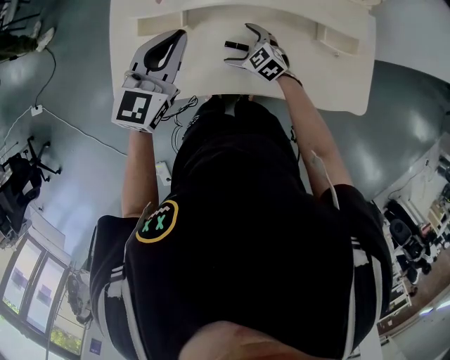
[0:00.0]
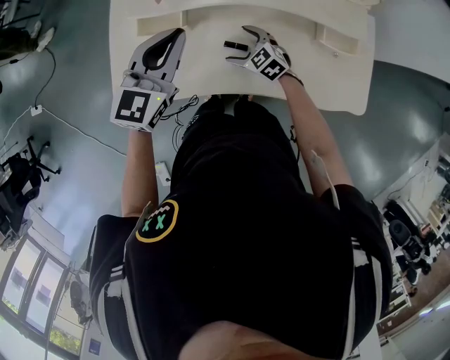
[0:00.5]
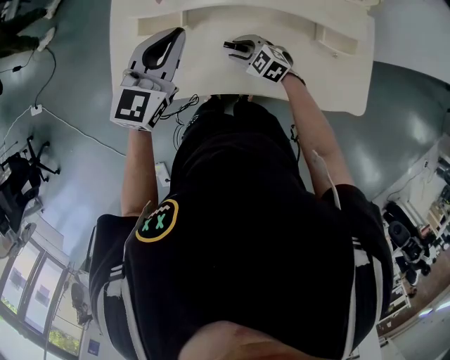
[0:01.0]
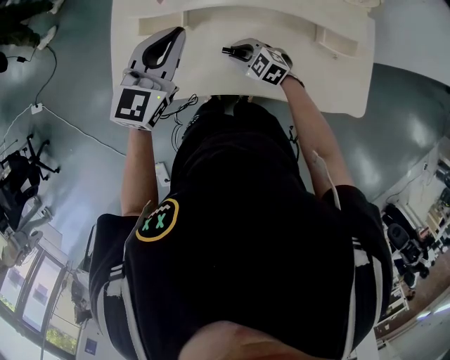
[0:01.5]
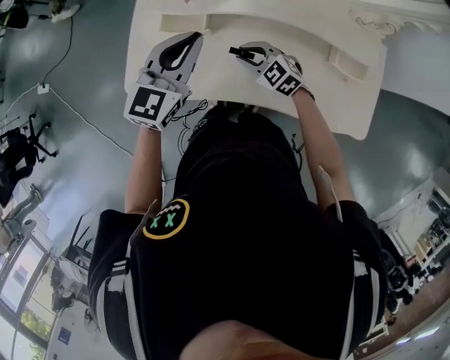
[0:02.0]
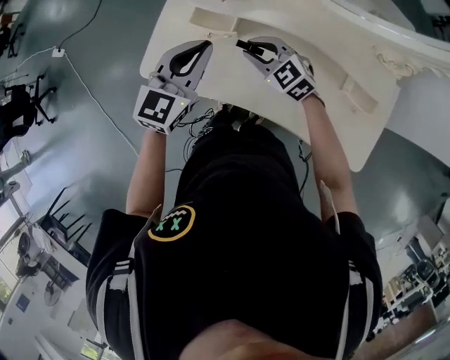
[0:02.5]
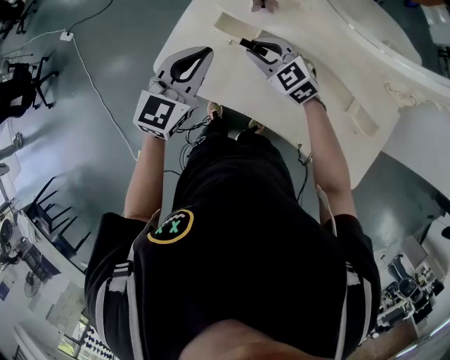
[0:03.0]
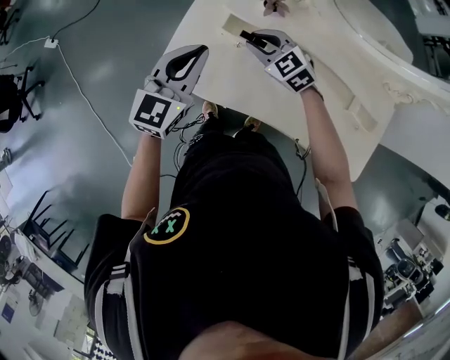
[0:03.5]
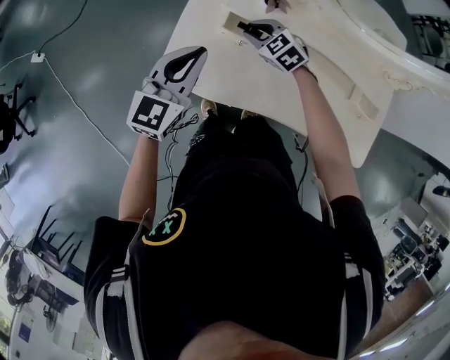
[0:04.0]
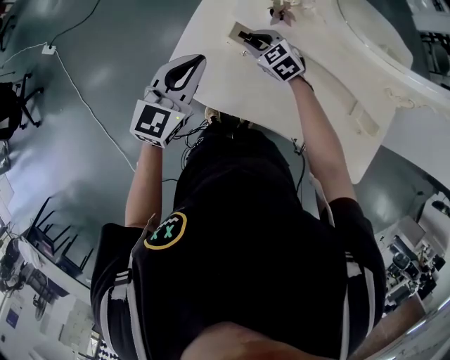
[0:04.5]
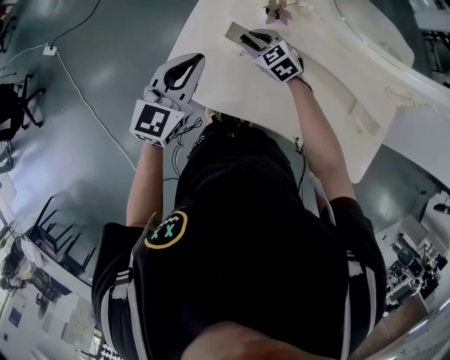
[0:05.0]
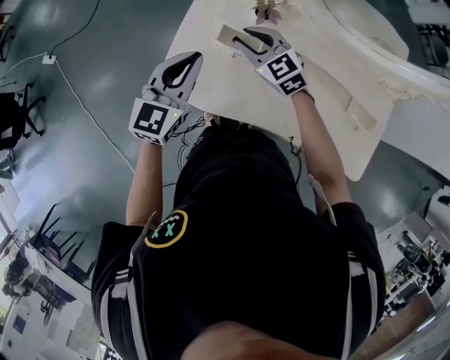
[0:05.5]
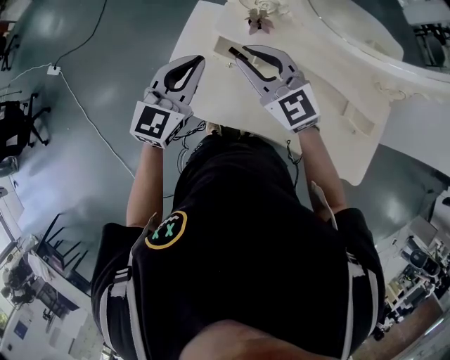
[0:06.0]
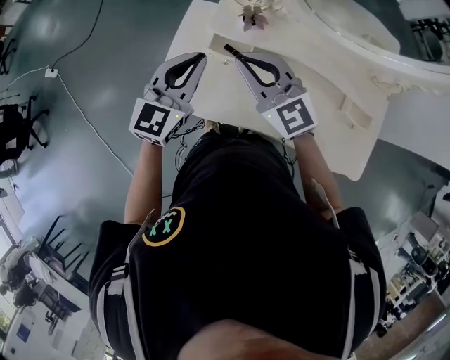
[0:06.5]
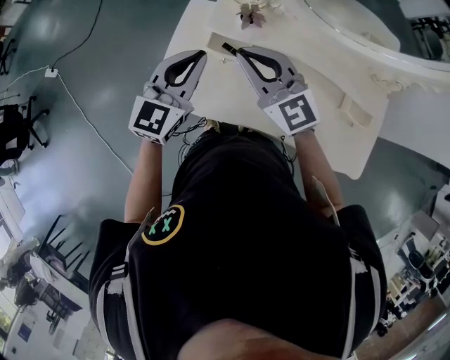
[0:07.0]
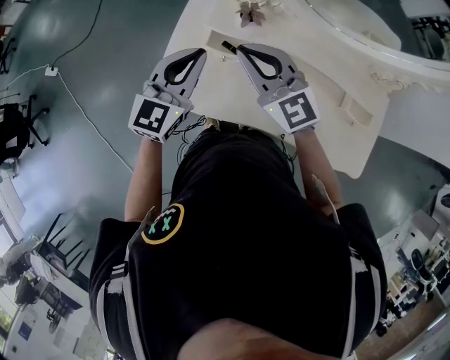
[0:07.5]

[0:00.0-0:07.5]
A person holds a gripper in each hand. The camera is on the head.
0:00.0 to 0:02.0: The right gripper travels upward by approximately 5 cm, and closes its fingers.
0:02.0 to 0:04.0: The right gripper is displaced forward and to the left by approximately 20 cm, while the left gripper travels to the left by roughly 20 cm.
0:04.0 to 0:05.5: The right gripper travels upward by about 10 cm.
0:05.5 to 0:07.5: The right gripper heads upward and backward, covering roughly 15 cm, and rotates roughly 30 degrees. The left gripper ends up roughly 5 cm from where it was.

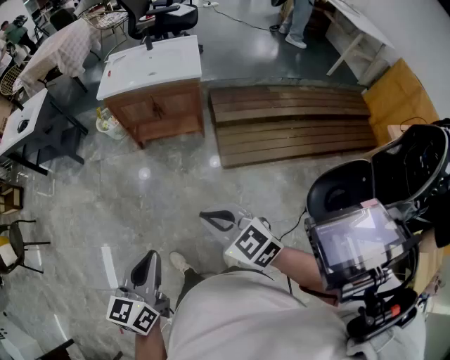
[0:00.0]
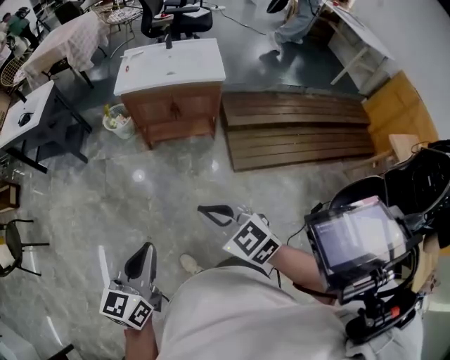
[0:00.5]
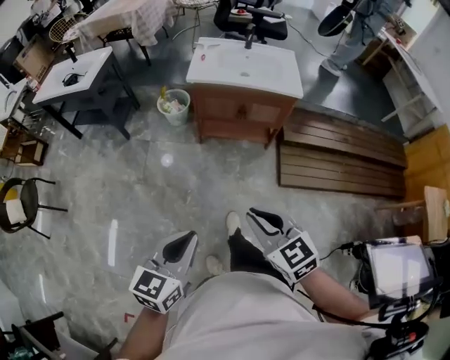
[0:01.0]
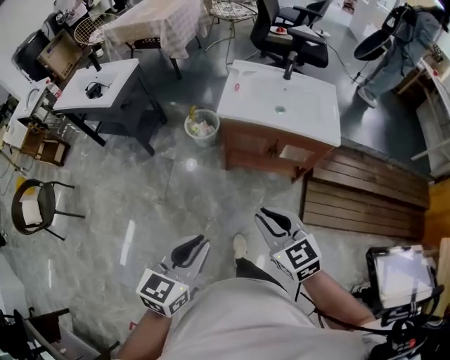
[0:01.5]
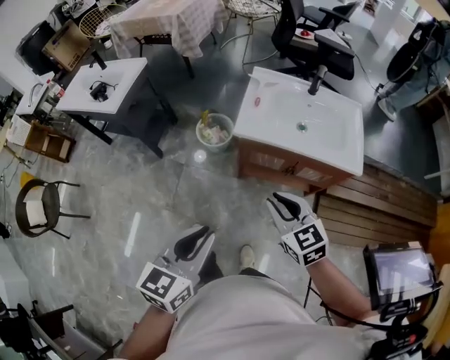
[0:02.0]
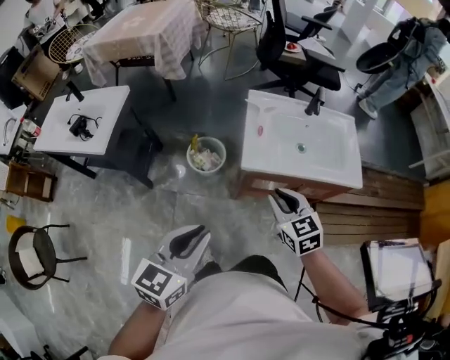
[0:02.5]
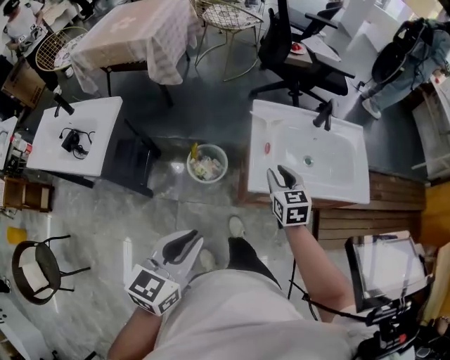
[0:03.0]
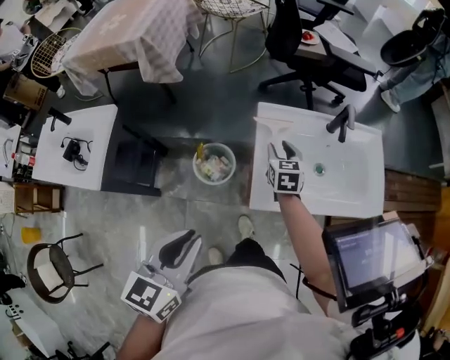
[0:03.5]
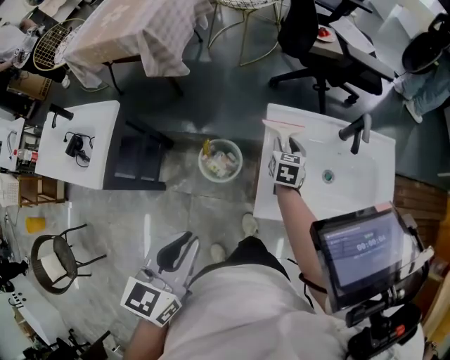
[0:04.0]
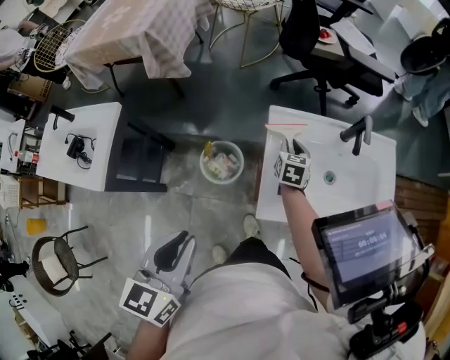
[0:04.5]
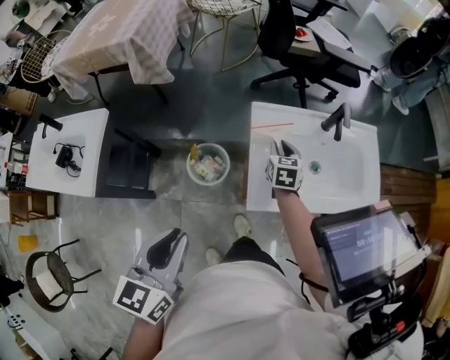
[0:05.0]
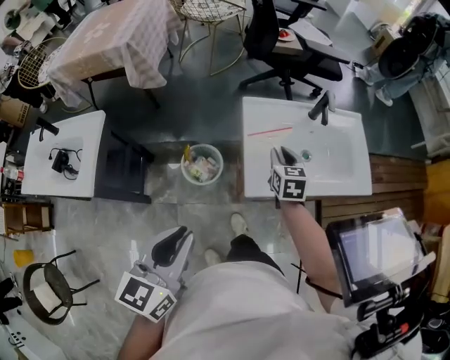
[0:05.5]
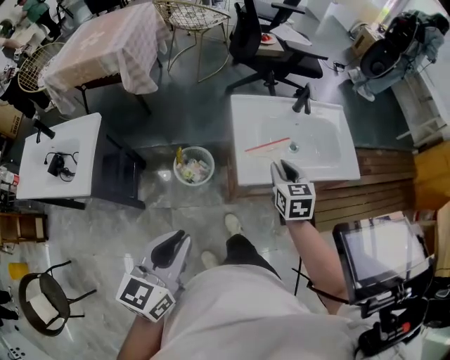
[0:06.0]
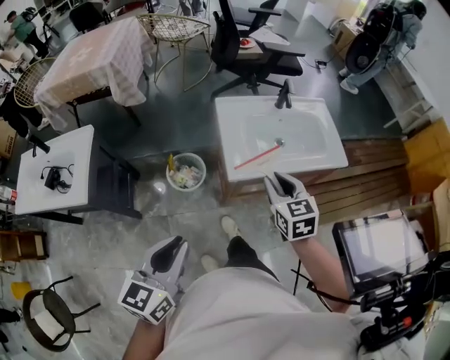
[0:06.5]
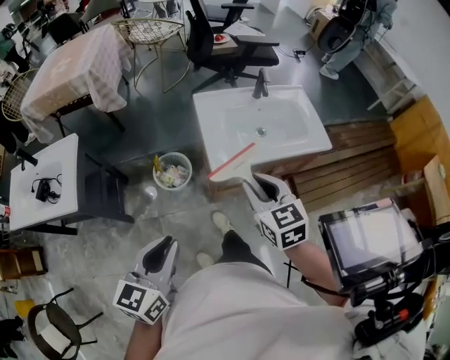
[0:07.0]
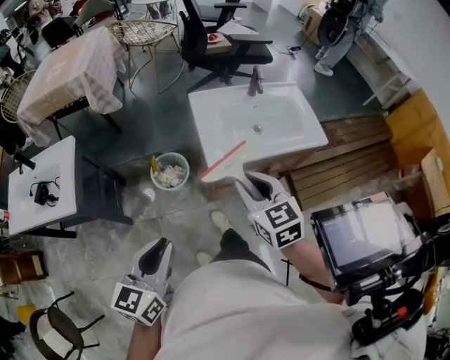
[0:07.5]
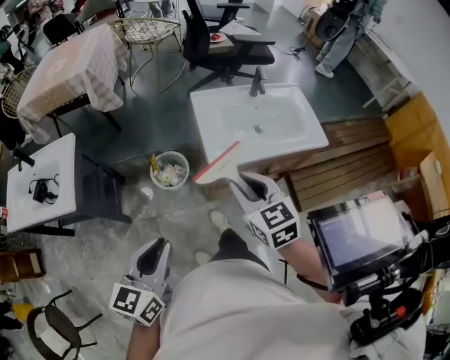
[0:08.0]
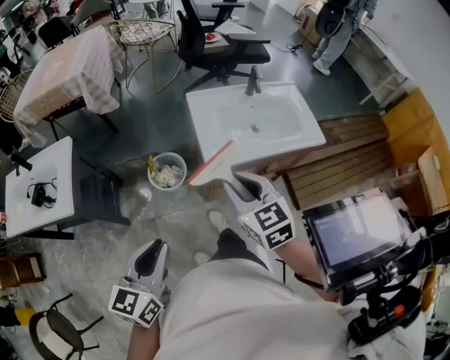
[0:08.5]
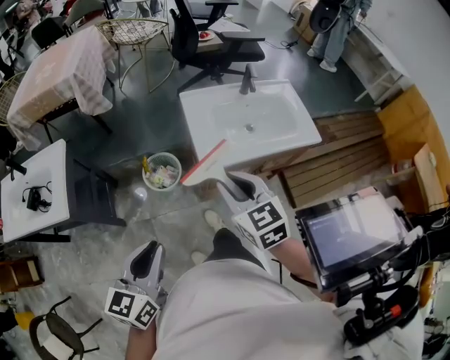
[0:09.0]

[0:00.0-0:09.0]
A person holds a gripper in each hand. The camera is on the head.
0:00.0 to 0:02.0: The pair of grippers is taken forward and to the left, approximately 60 cm.
0:02.0 to 0:04.5: The two grippers travel together, forward, some 50 cm. The right gripper swivels some 50 degrees.
0:04.5 to 0:07.0: The left gripper shifts about 20 cm backward, and rotates roughly 20 degrees; the right gripper goes some 50 cm backward and upward.
0:07.0 to 0:09.0: The grippers move only a little.

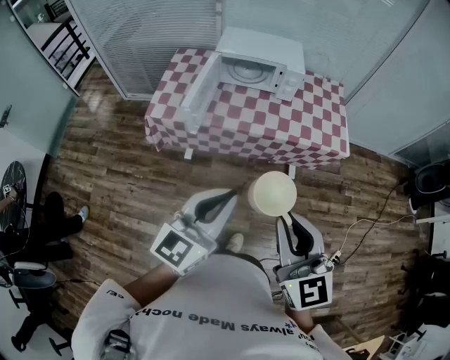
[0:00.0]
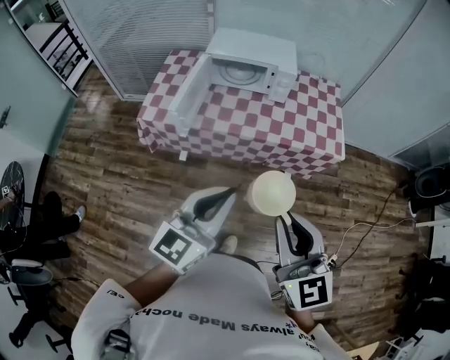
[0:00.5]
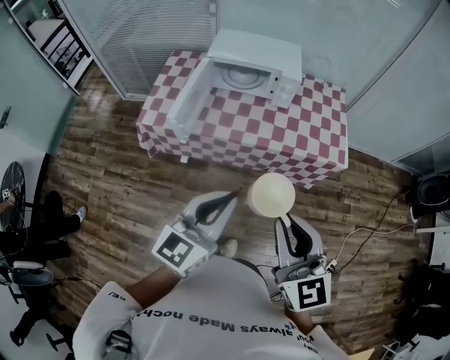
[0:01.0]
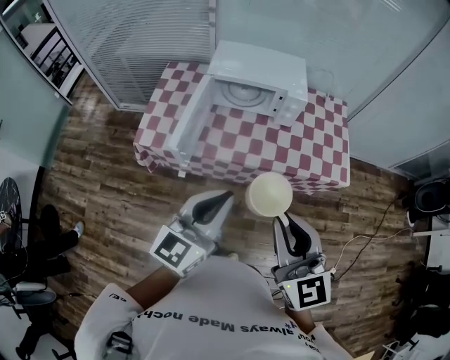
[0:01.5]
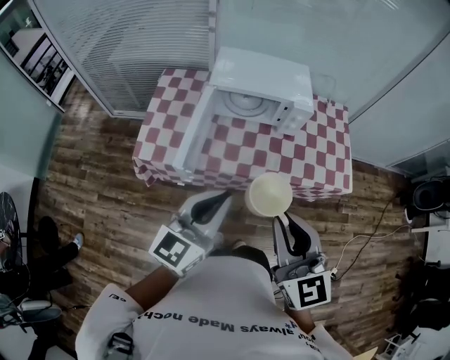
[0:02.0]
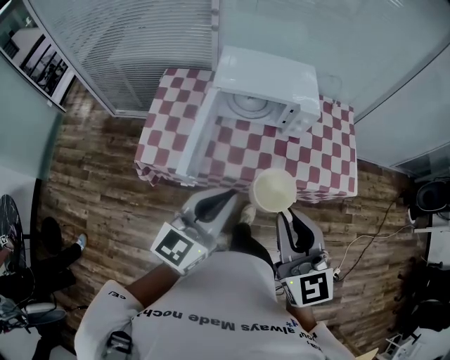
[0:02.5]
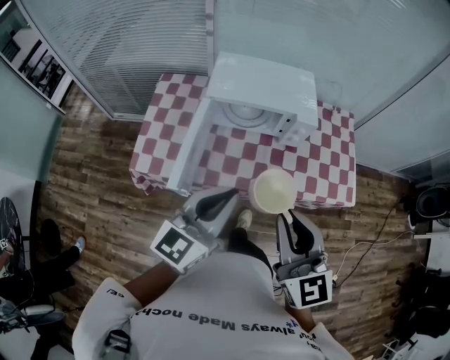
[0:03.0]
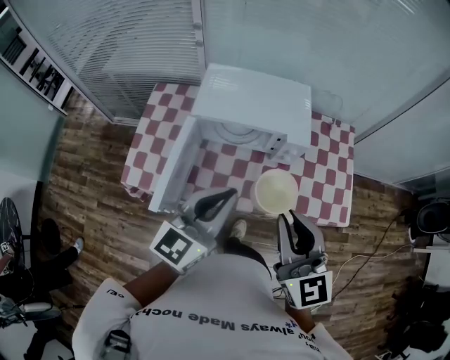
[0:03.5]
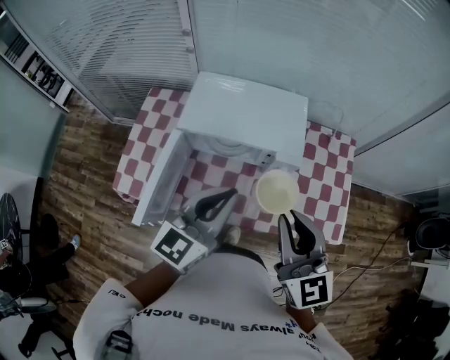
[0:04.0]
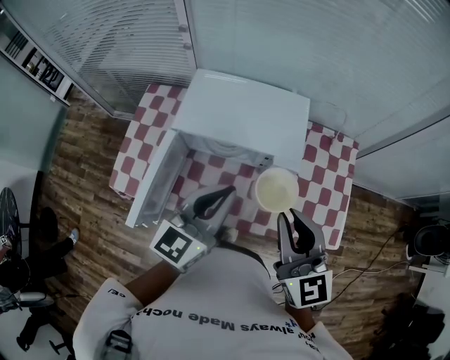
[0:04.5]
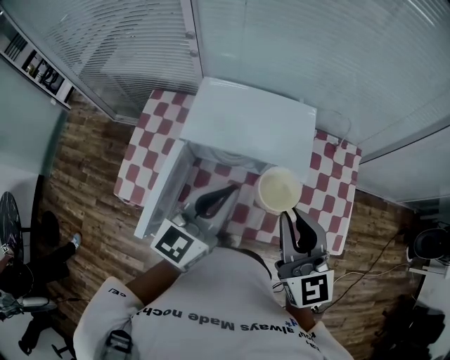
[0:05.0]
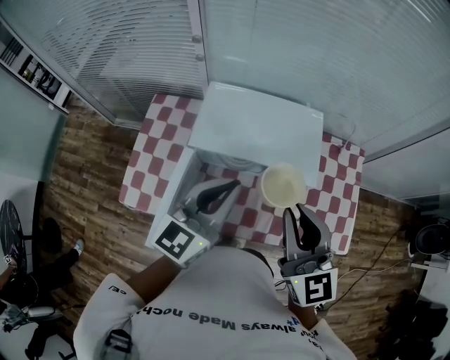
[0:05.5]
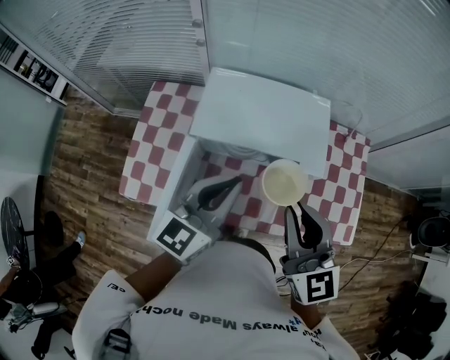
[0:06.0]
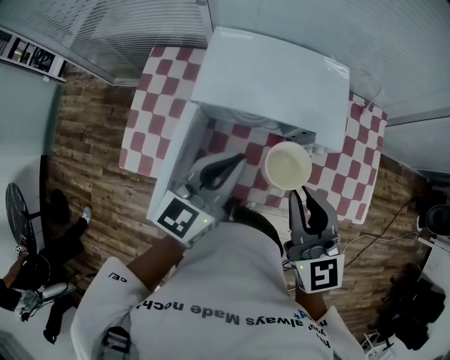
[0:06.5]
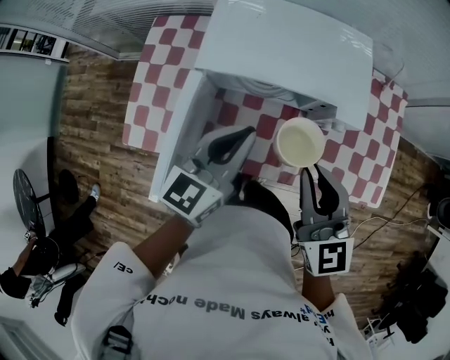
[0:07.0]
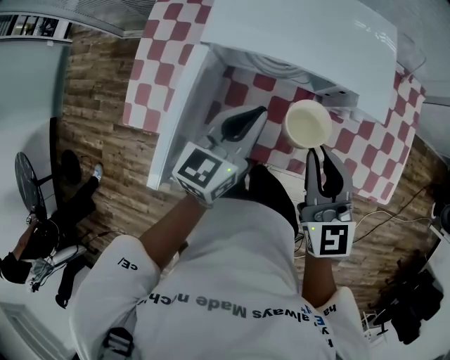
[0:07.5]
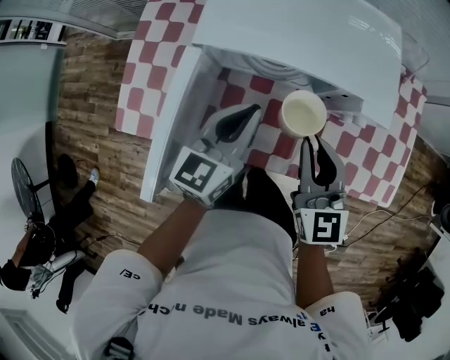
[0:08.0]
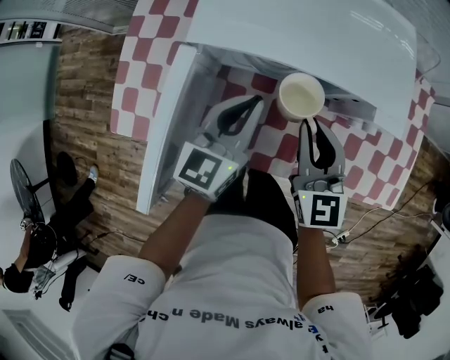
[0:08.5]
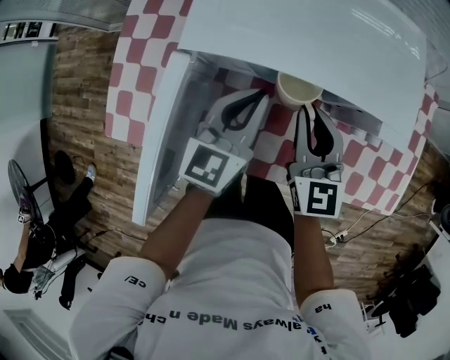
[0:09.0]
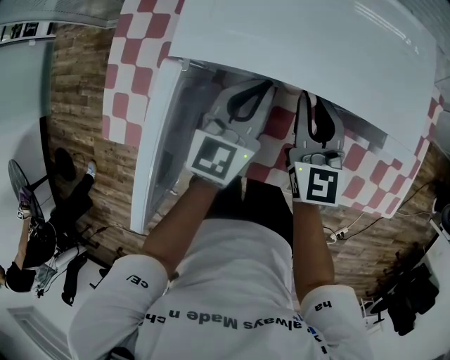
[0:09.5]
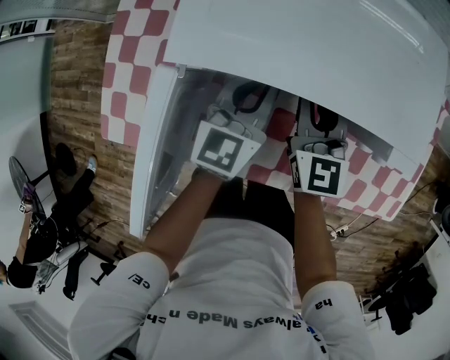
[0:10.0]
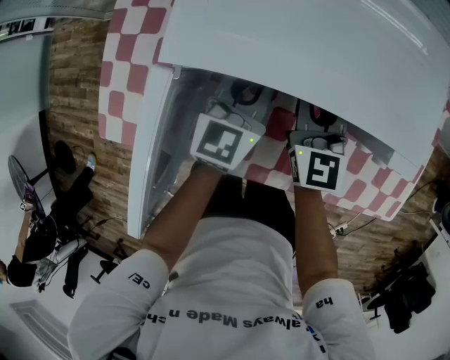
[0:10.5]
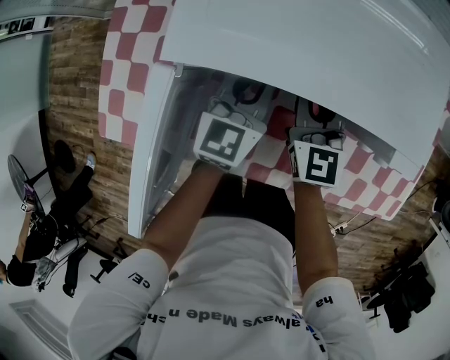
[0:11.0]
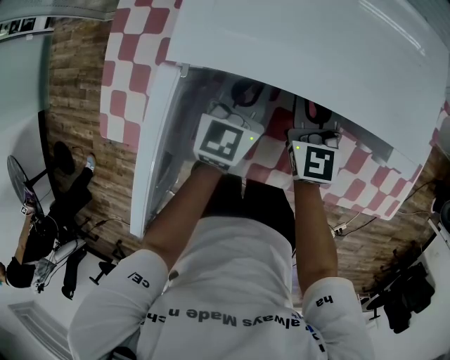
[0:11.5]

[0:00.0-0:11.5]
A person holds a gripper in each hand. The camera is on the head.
0:00.0 to 0:02.0: The grippers both shift forward by about 25 cm.
0:02.0 to 0:04.0: The grippers both shift forward by about 30 cm.
0:04.0 to 0:06.0: Both grippers move forward and to the left, roughly 10 cm.
0:06.0 to 0:07.5: Both grippers travel together downward, about 20 cm.
0:07.5 to 0:09.5: Both grippers move forward and downward, about 20 cm.
0:09.5 to 0:11.5: The left gripper shifts by about 5 cm. Meanwhile the right gripper moves about 5 cm.
